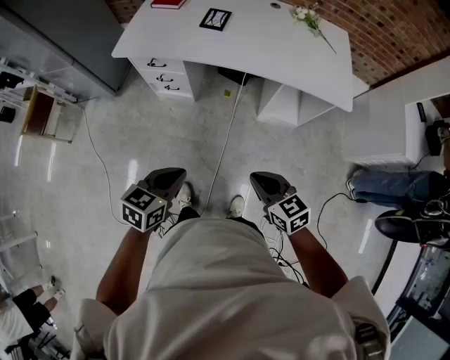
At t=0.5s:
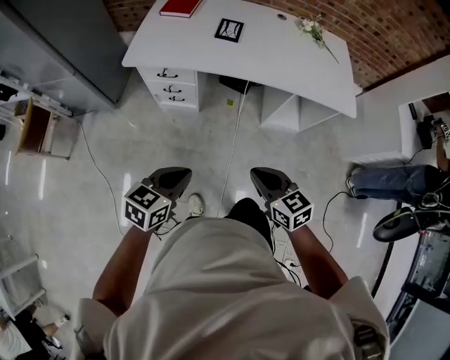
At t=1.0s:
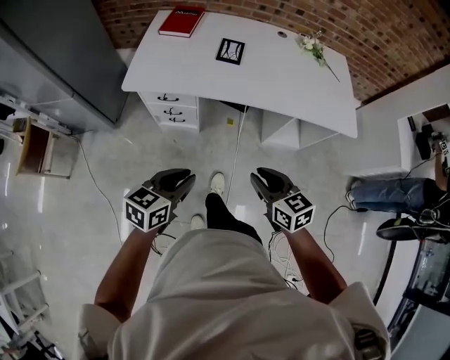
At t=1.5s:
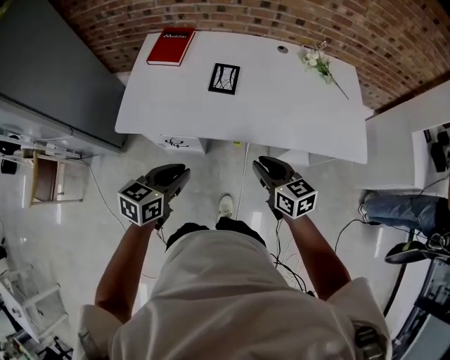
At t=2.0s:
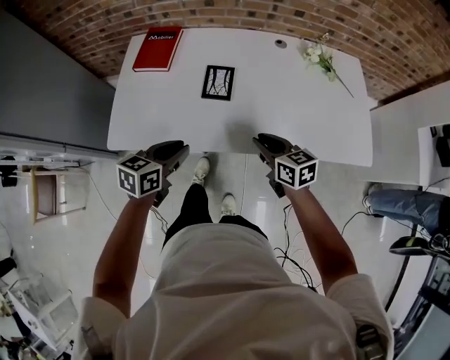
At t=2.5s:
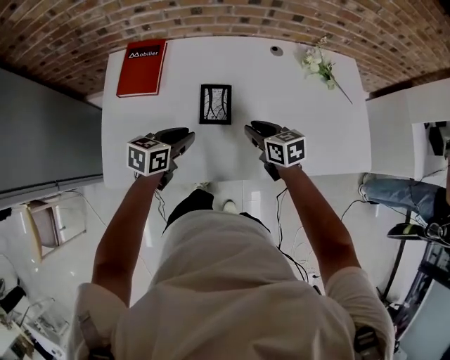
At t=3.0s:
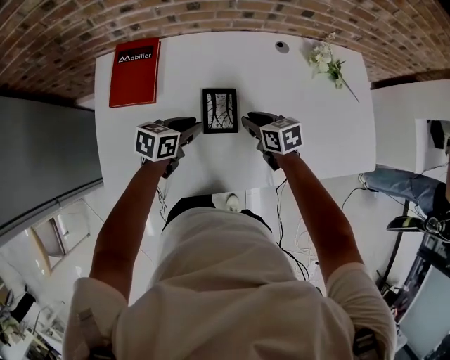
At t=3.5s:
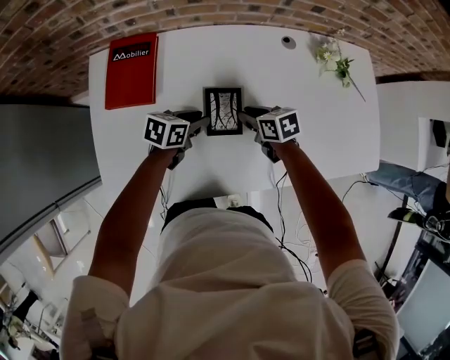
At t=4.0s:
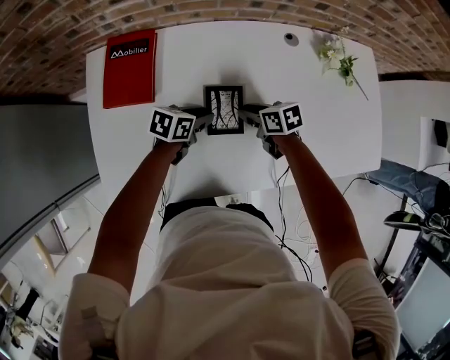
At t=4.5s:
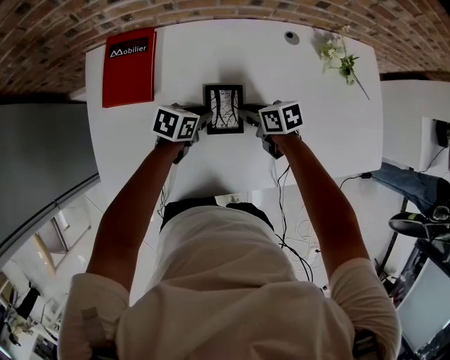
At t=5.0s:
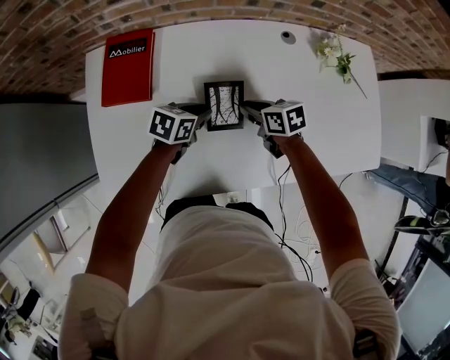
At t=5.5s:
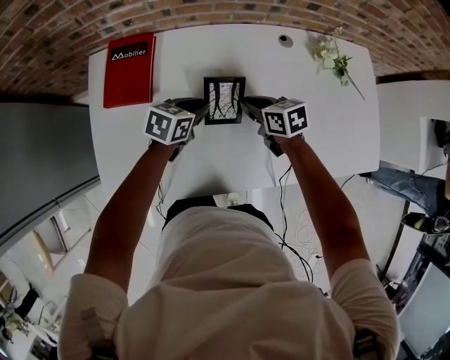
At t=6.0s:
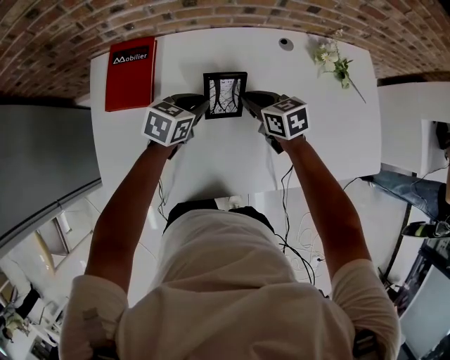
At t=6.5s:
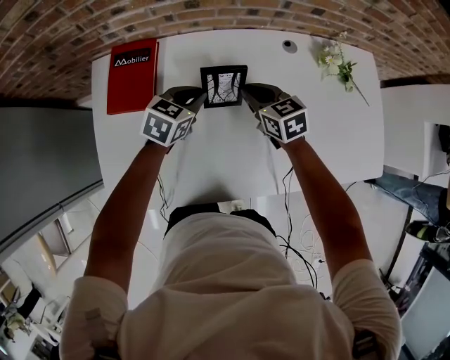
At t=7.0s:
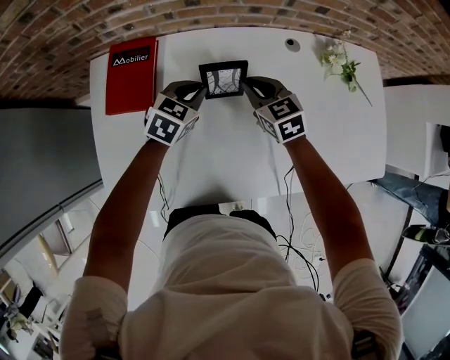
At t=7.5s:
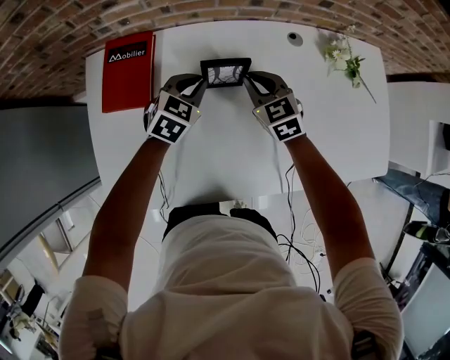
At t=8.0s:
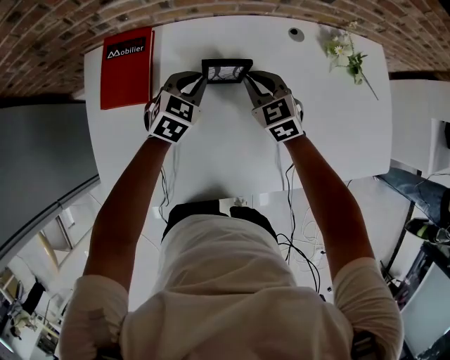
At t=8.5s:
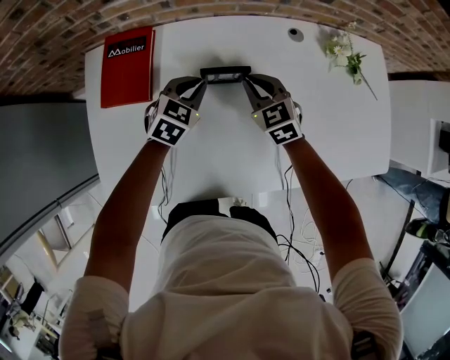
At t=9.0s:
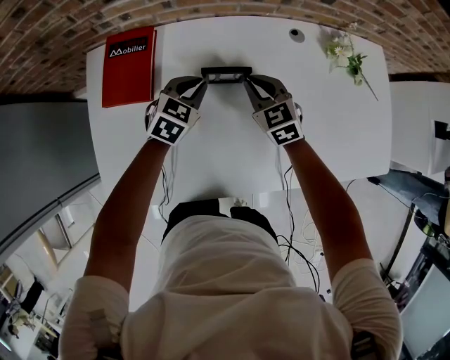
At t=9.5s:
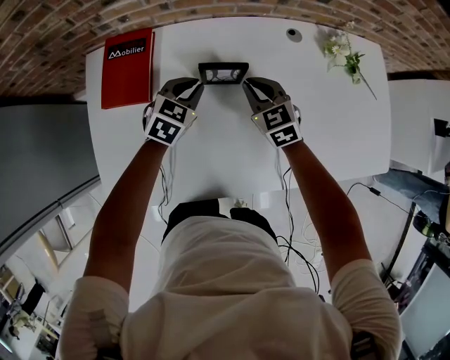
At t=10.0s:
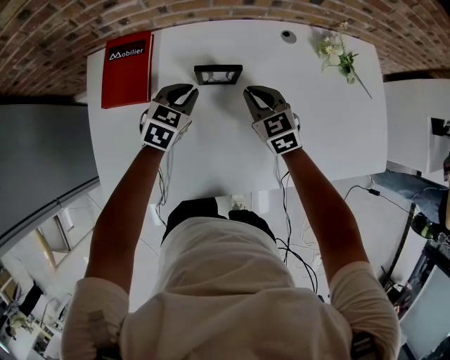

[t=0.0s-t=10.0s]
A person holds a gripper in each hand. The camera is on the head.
t=0.0s to t=2.0s: The two grippers travel together, forward, approximately 50 cm. The right gripper changes its angle by roughly 20 degrees.
t=2.0s to t=4.0s: The right gripper moves some 30 cm, and rotates approximately 30 degrees. The left gripper moves about 35 cm, and rotates about 30 degrees.
t=4.0s to t=6.0s: The grippers both shift upward by roughly 10 cm. The left gripper changes its angle by roughly 20 degrees.
t=6.0s to t=8.0s: The left gripper goes about 5 cm forward, and swivels some 30 degrees, while the right gripper rotates approximately 30 degrees.
t=8.0s to t=10.0s: There are only small adjustments of the grippers.

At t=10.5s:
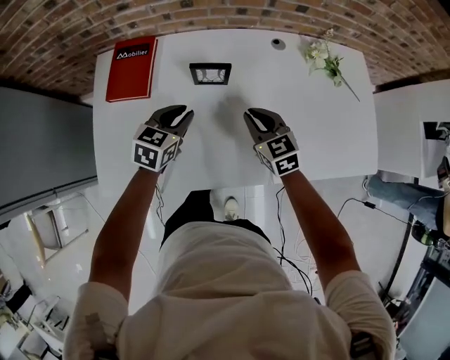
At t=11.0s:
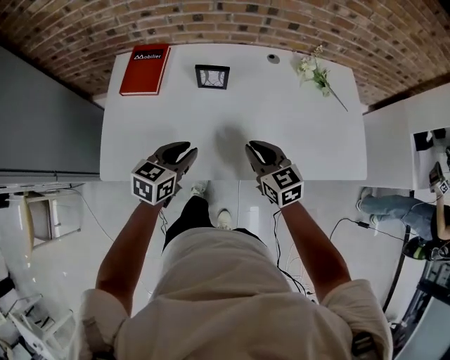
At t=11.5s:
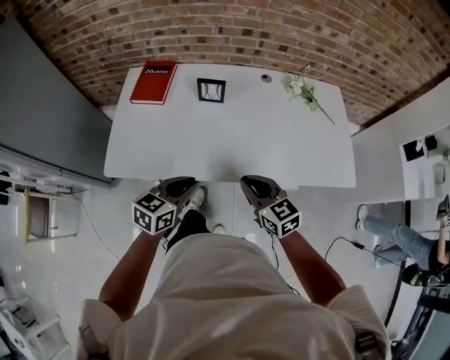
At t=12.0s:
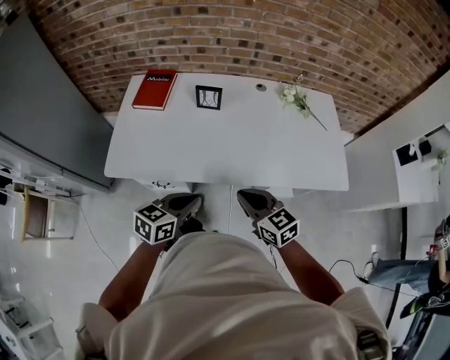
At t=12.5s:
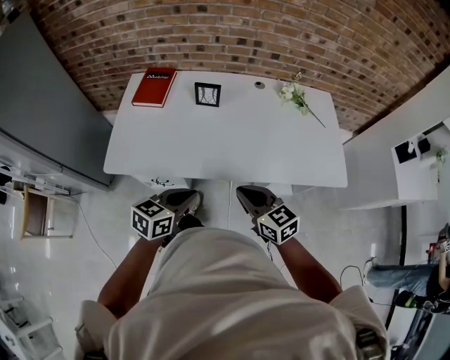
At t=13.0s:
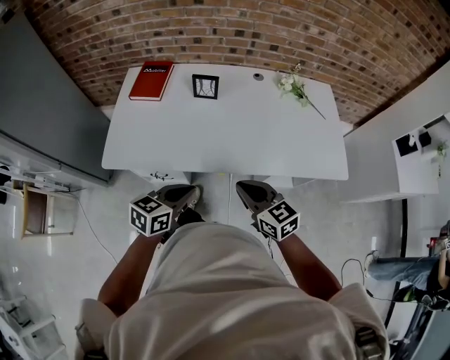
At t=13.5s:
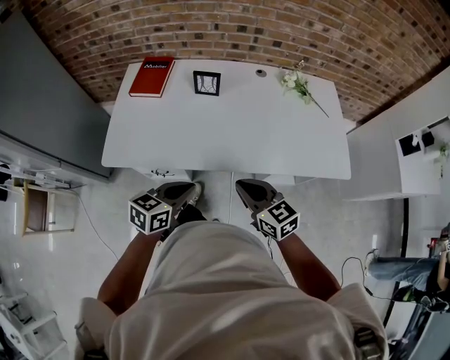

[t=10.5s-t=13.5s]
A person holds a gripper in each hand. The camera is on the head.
t=10.5s to t=12.0s: The two grippers go approximately 30 cm backward.
t=12.0s to t=13.5s: Both grippers stay about where they are.

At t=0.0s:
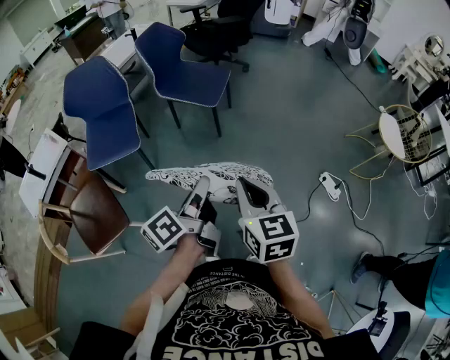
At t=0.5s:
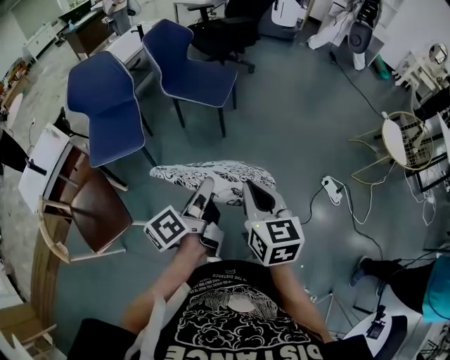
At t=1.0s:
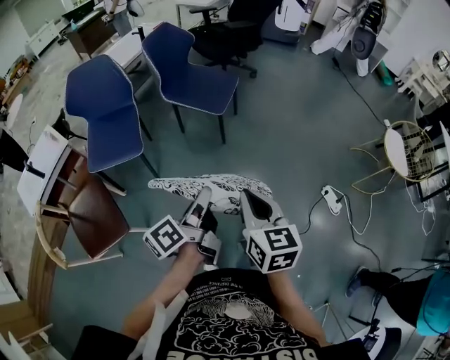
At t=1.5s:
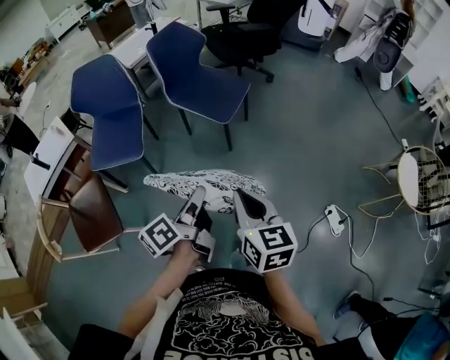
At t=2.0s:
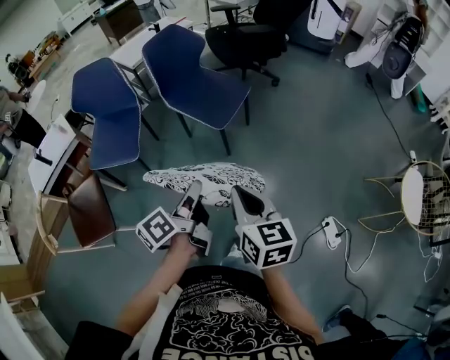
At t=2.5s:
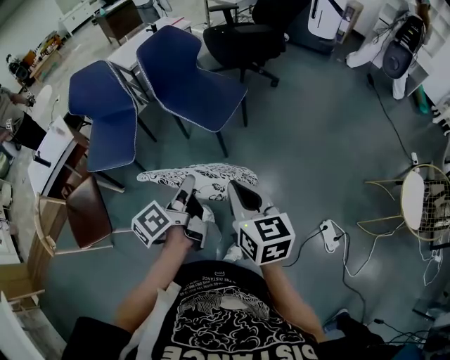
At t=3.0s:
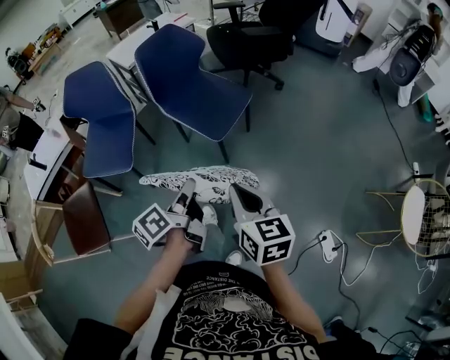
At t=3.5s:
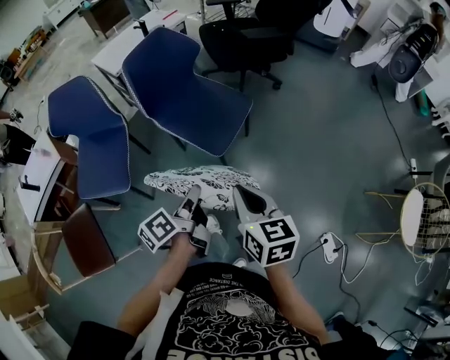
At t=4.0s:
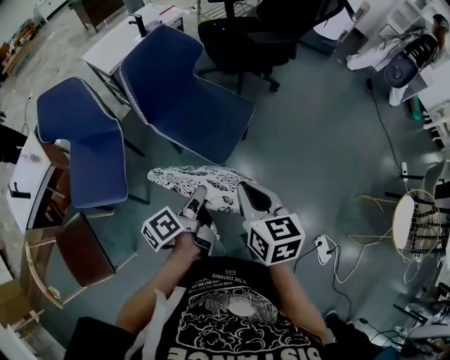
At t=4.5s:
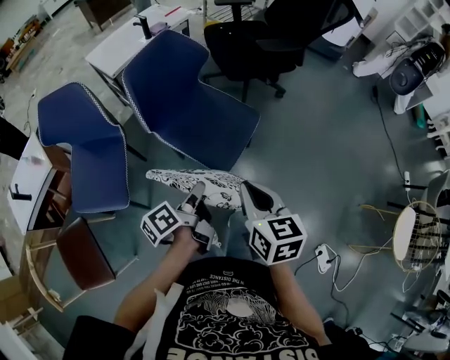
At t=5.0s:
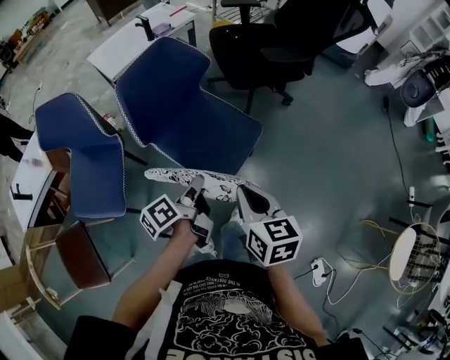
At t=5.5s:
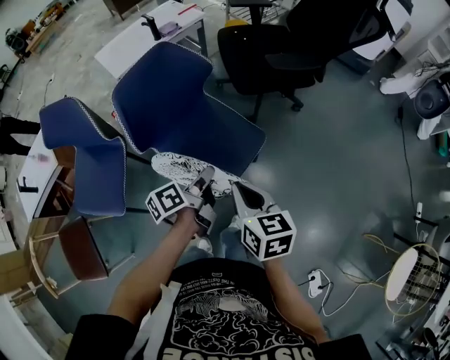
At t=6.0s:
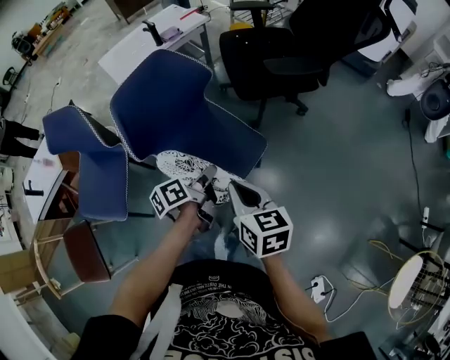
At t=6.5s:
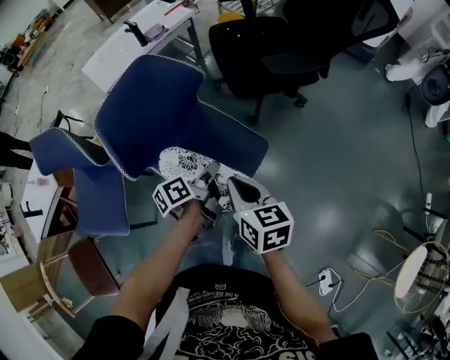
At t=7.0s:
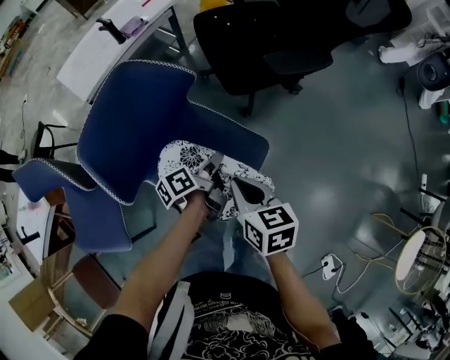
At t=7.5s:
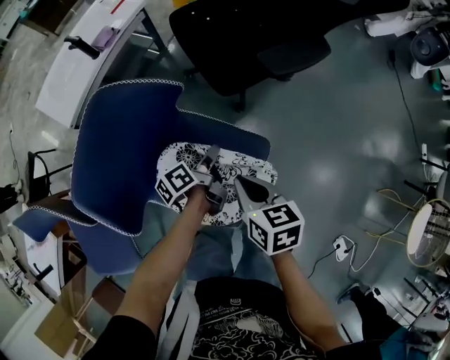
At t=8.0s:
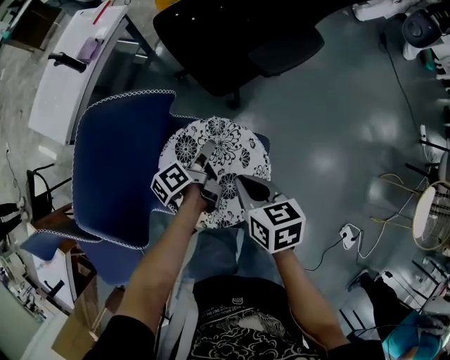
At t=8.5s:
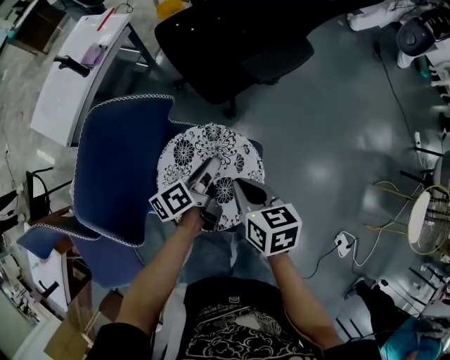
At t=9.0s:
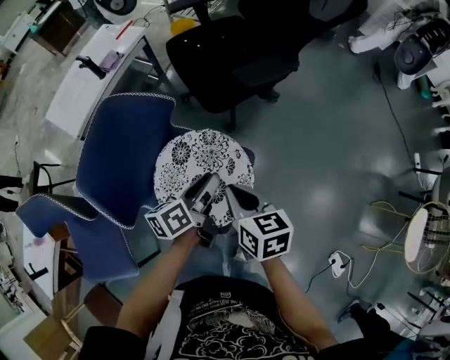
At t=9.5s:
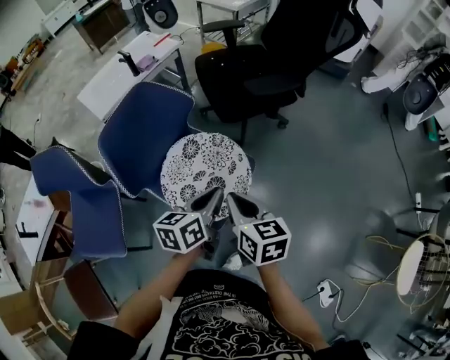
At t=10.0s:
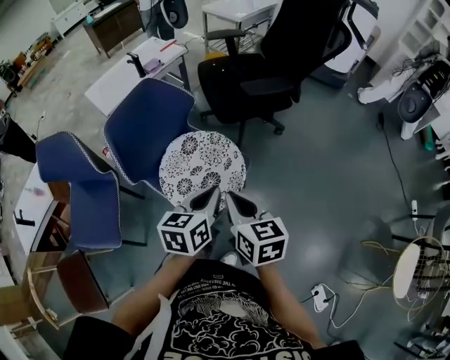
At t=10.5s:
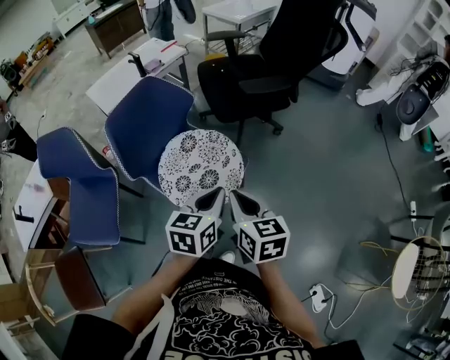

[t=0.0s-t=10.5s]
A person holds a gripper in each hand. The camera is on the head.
t=0.0s to t=2.0s: The right gripper moves roughly 20 cm.
t=2.0s to t=4.0s: The right gripper shifts by some 30 cm.
t=4.0s to t=6.5s: The right gripper changes place by approximately 30 cm.
t=6.5s to t=8.5s: The right gripper shifts by about 10 cm, and turns by approximately 20 degrees.
t=8.5s to t=10.5s: The right gripper shifts by about 20 cm, and rotates some 20 degrees.

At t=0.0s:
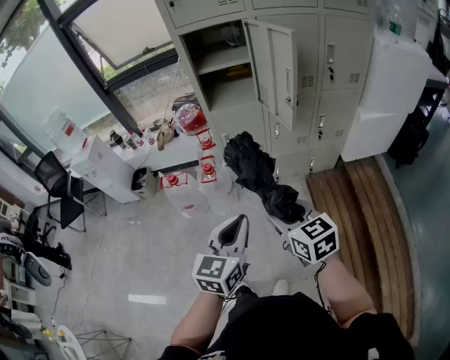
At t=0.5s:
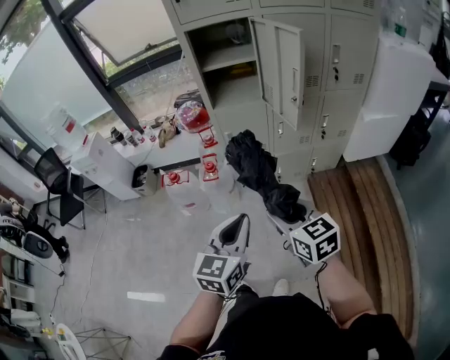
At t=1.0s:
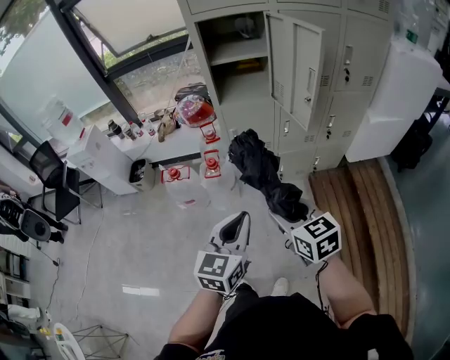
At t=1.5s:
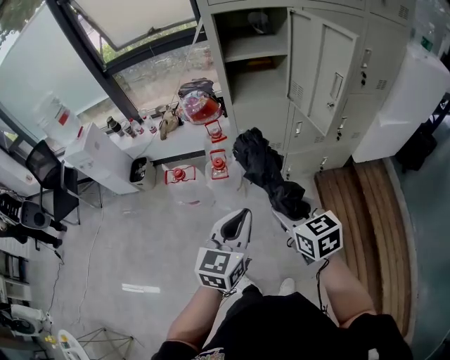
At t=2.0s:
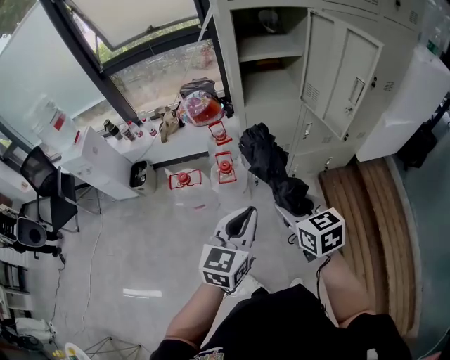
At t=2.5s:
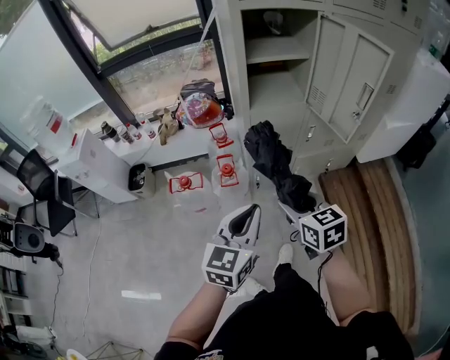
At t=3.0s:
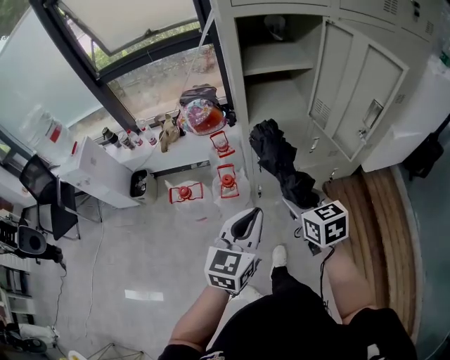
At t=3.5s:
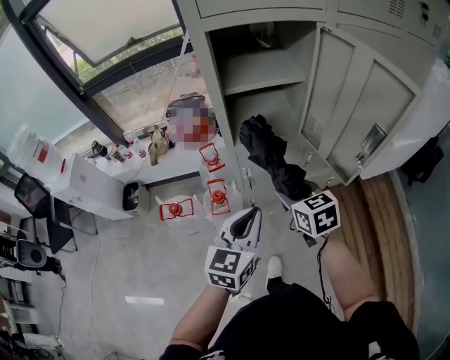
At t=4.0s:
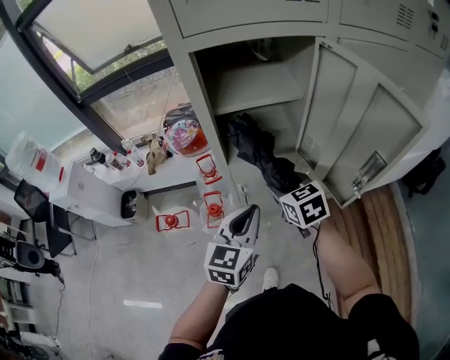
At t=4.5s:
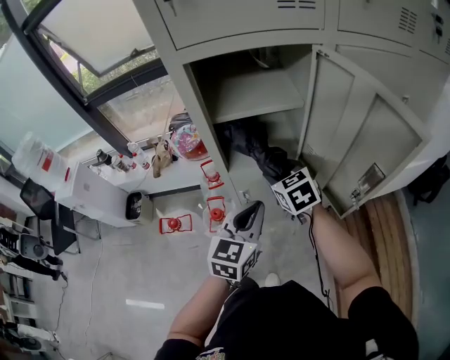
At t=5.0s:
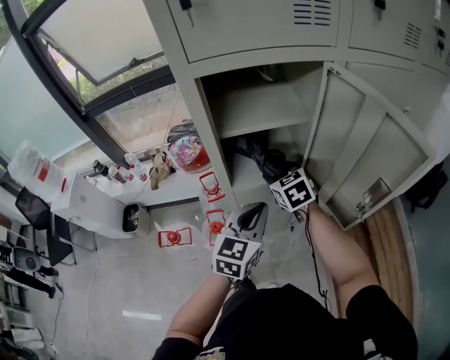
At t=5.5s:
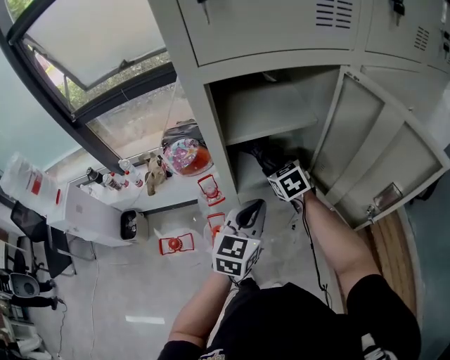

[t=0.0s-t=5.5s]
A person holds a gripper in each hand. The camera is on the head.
t=0.0s to t=2.0s: The two grippers go some 20 cm to the left and forward.
t=2.0s to t=3.5s: Both grippers move forward, some 20 cm.
t=3.5s to t=5.5s: The grippers both shift forward by some 20 cm.
